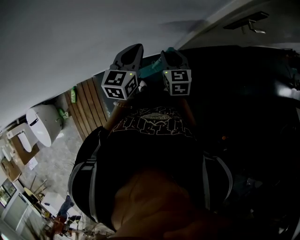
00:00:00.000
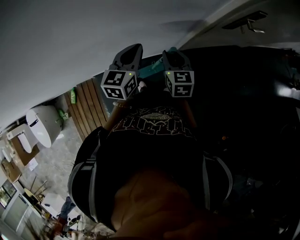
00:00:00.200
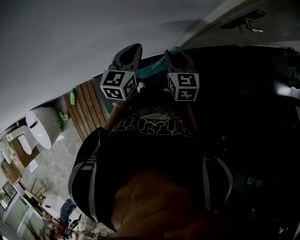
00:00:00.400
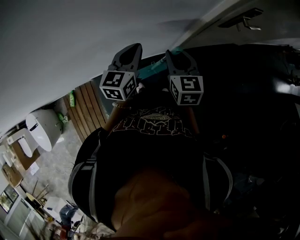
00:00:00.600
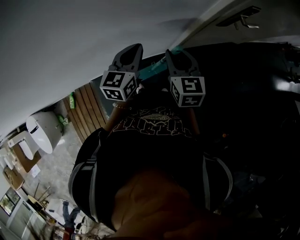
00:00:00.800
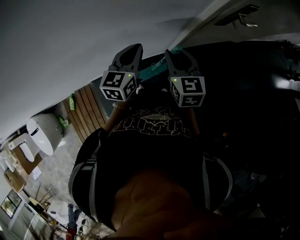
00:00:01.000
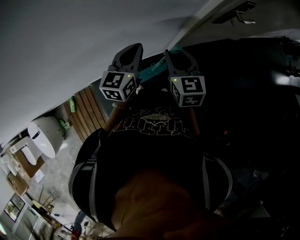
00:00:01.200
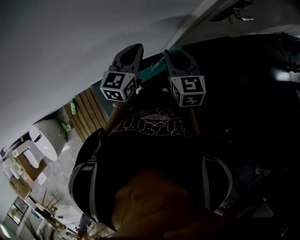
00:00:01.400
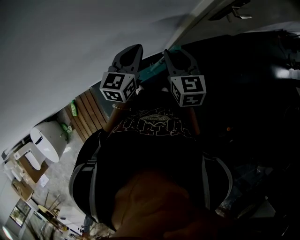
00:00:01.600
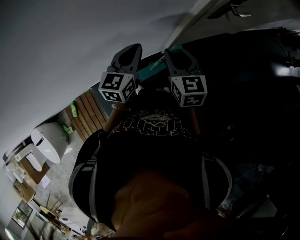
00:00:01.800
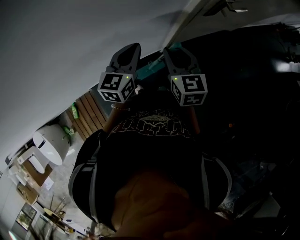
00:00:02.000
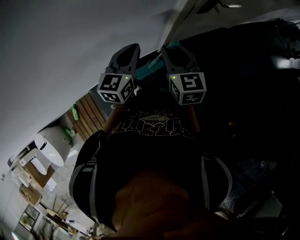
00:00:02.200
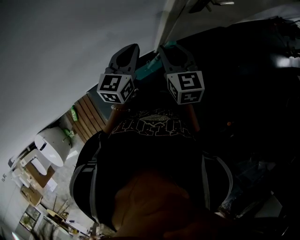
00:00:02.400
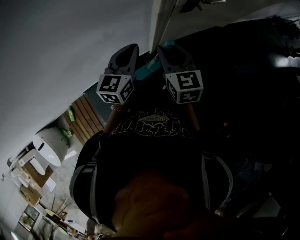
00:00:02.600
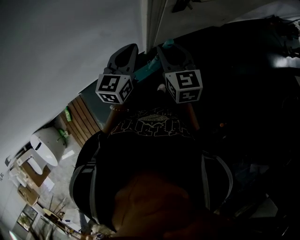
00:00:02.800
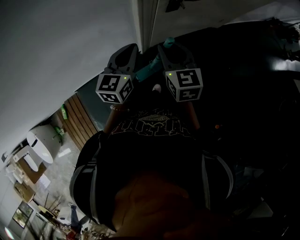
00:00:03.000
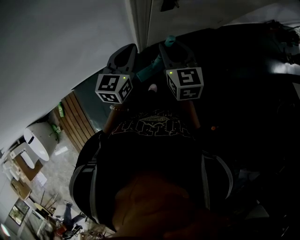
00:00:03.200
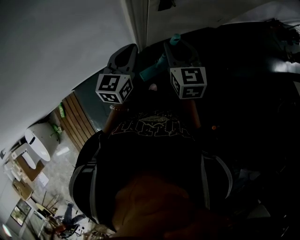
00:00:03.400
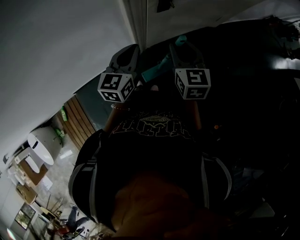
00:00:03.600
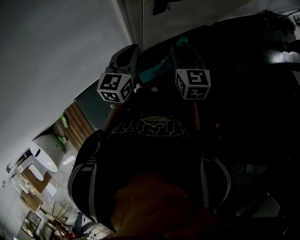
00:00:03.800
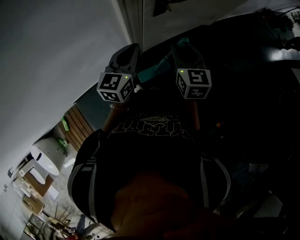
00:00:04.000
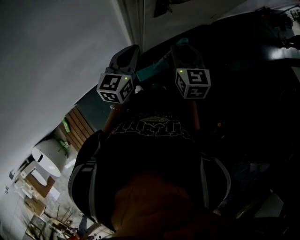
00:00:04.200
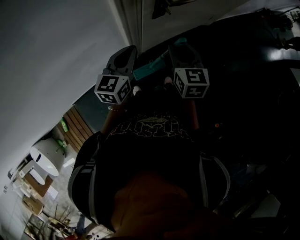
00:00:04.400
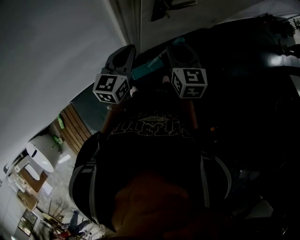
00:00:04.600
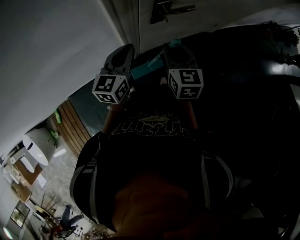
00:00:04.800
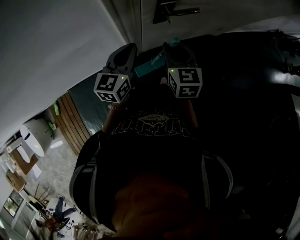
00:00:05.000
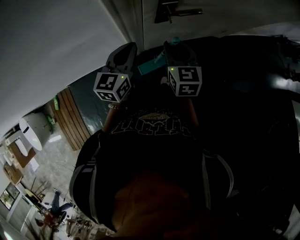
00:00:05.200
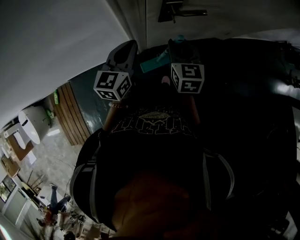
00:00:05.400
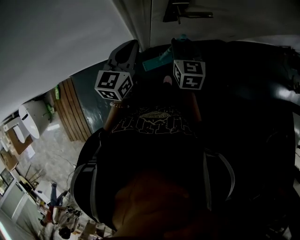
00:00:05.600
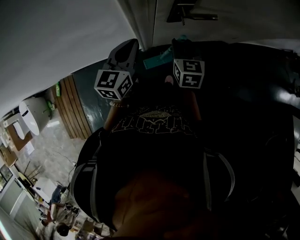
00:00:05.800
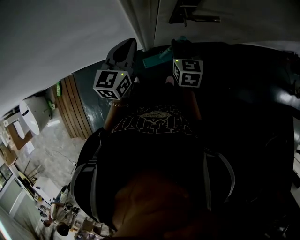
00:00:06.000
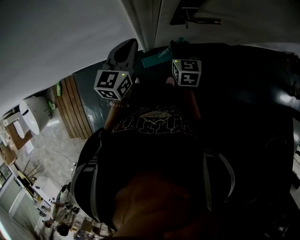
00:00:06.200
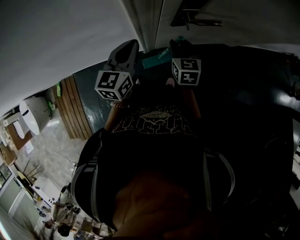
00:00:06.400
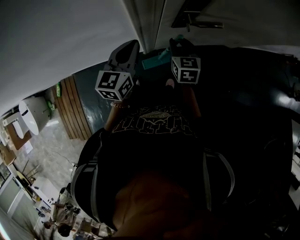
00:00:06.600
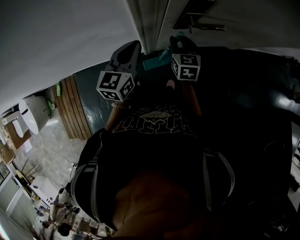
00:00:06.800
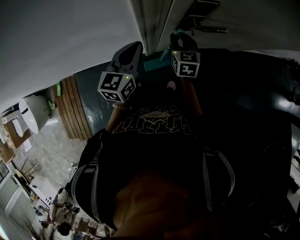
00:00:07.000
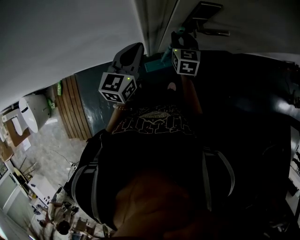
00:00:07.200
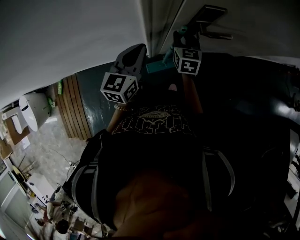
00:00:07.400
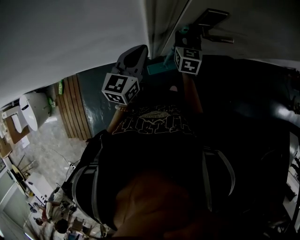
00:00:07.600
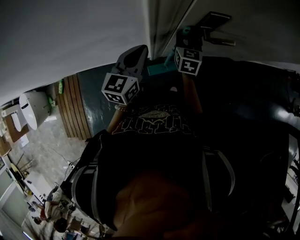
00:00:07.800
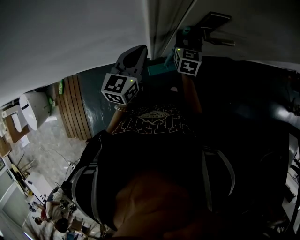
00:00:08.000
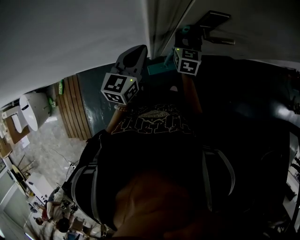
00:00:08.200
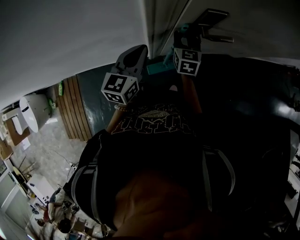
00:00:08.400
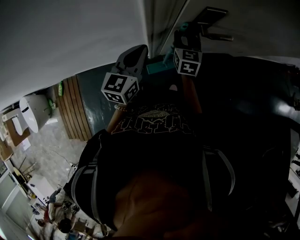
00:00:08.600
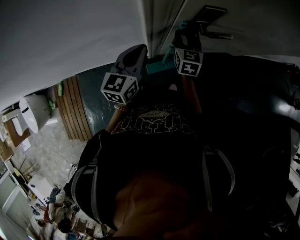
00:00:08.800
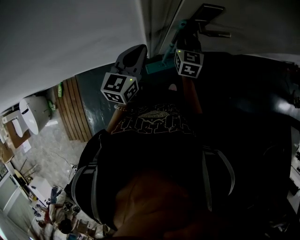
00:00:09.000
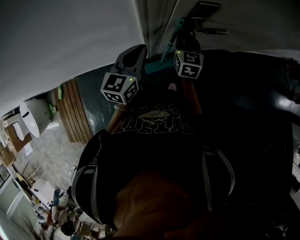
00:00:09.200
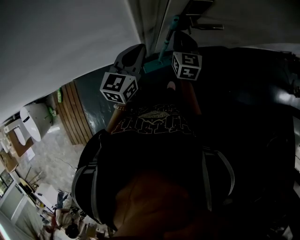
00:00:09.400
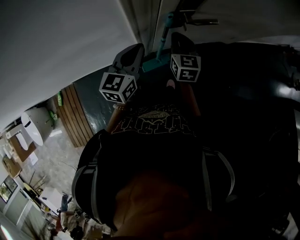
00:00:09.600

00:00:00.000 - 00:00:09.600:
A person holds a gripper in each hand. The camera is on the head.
00:00:00.000 - 00:00:01.600: The right gripper is displaced upward and to the right by about 10 cm. The left gripper ends up some 5 cm from where it was.
00:00:01.600 - 00:00:03.200: Both grippers travel together to the right, approximately 25 cm.
00:00:03.200 - 00:00:04.800: The right gripper moves forward and to the right, roughly 10 cm. The left gripper shifts some 10 cm forward.
00:00:04.800 - 00:00:06.400: The left gripper moves some 5 cm, while the right gripper is displaced downward and forward by approximately 15 cm.
00:00:06.400 - 00:00:08.000: The right gripper travels forward by some 10 cm.
00:00:08.000 - 00:00:09.600: The right gripper heads backward, covering some 5 cm, and closes up.

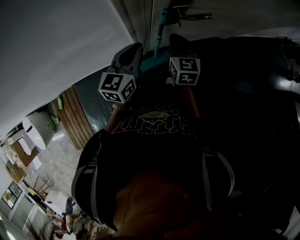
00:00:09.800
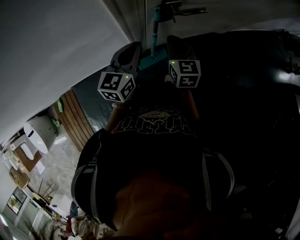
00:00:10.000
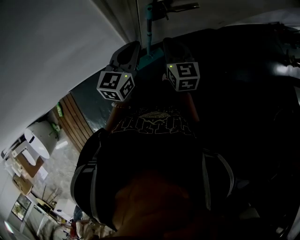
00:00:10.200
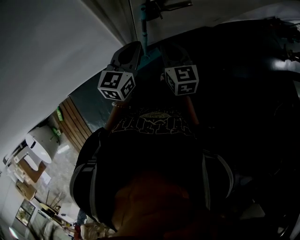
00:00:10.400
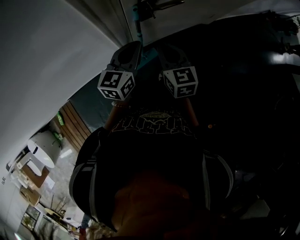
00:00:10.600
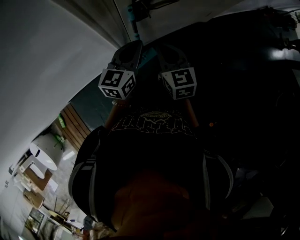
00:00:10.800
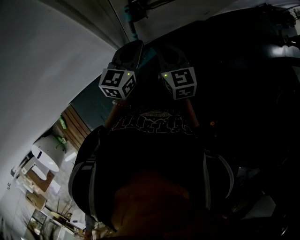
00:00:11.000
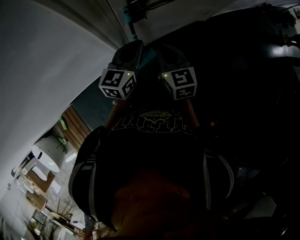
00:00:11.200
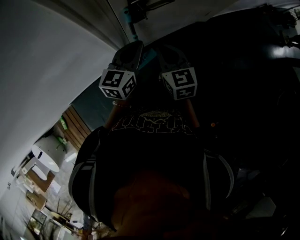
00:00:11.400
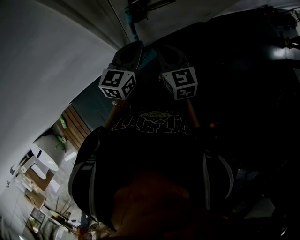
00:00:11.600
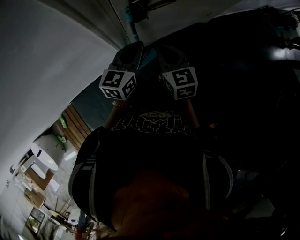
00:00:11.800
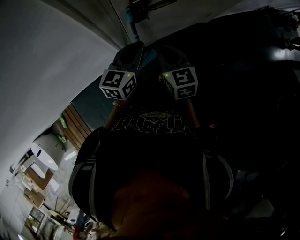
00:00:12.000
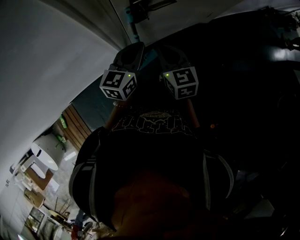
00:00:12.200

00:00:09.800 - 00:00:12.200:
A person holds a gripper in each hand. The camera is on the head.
00:00:09.800 - 00:00:11.000: The right gripper travels backward and to the right by about 10 cm, while the left gripper moves to the right, roughly 10 cm.
00:00:11.000 - 00:00:12.200: The two grippers keep their place.

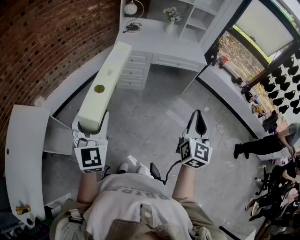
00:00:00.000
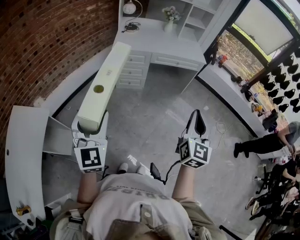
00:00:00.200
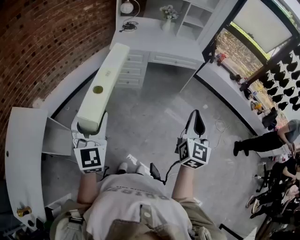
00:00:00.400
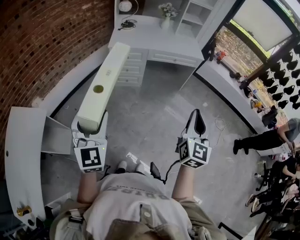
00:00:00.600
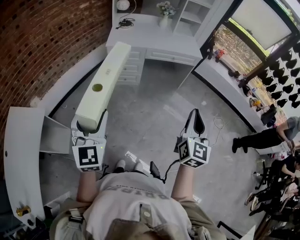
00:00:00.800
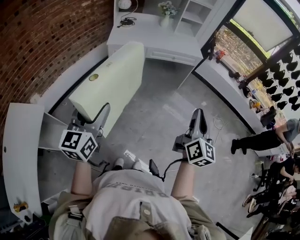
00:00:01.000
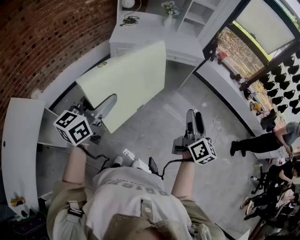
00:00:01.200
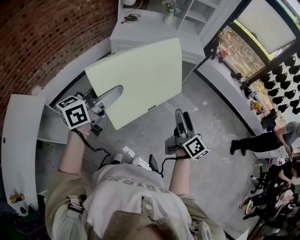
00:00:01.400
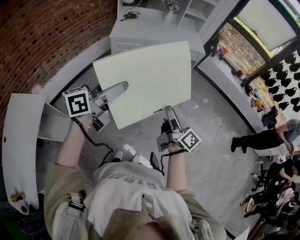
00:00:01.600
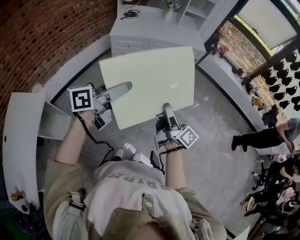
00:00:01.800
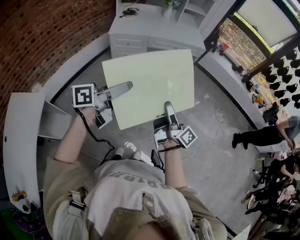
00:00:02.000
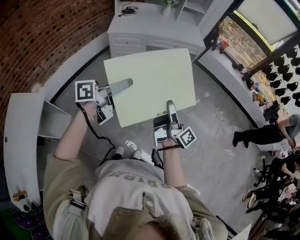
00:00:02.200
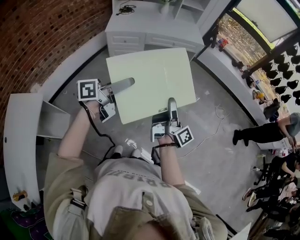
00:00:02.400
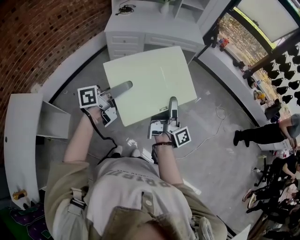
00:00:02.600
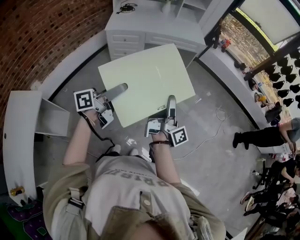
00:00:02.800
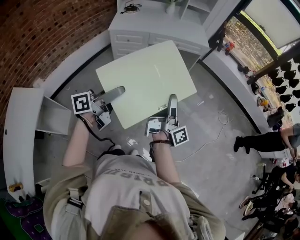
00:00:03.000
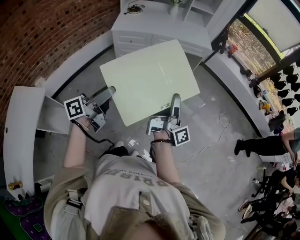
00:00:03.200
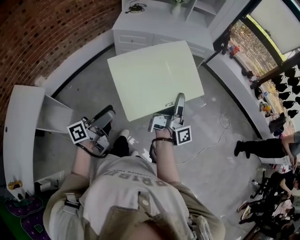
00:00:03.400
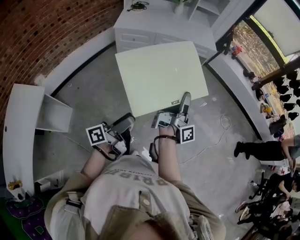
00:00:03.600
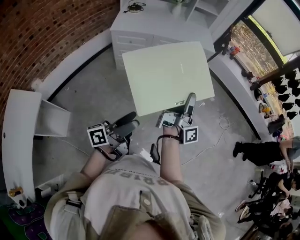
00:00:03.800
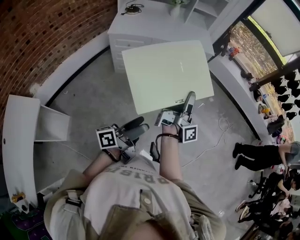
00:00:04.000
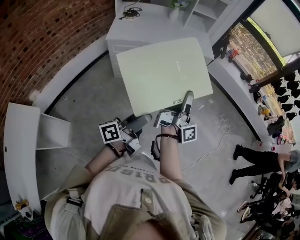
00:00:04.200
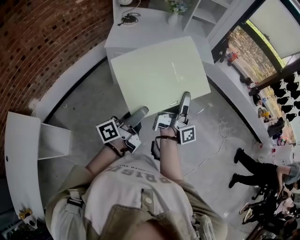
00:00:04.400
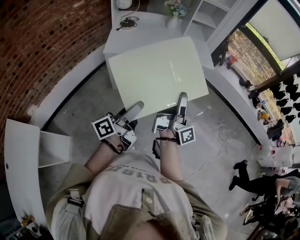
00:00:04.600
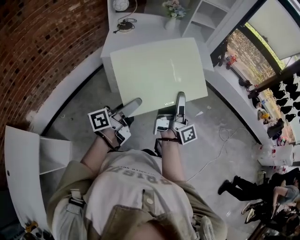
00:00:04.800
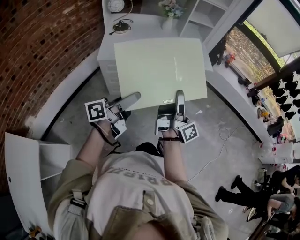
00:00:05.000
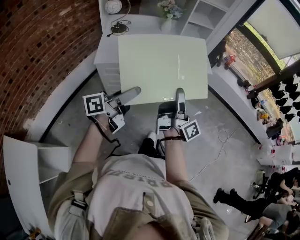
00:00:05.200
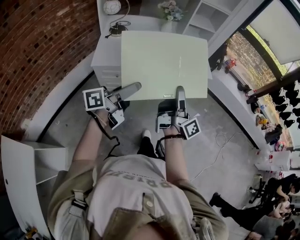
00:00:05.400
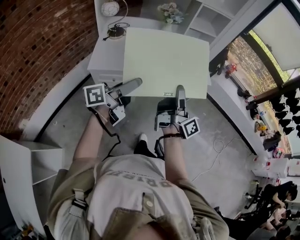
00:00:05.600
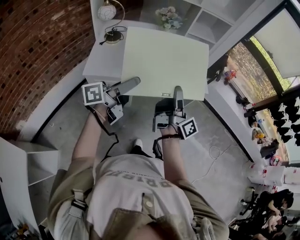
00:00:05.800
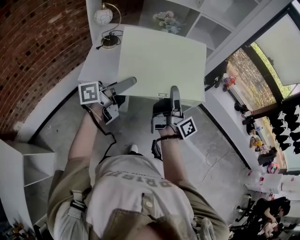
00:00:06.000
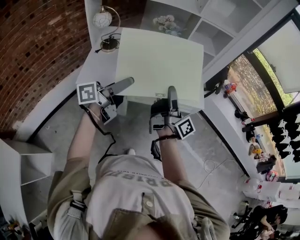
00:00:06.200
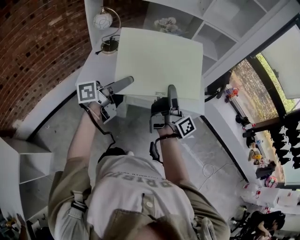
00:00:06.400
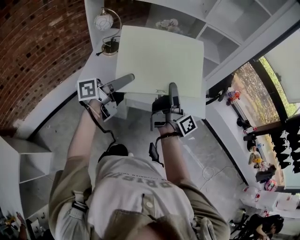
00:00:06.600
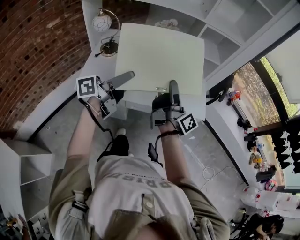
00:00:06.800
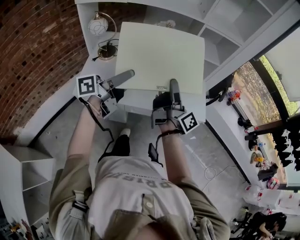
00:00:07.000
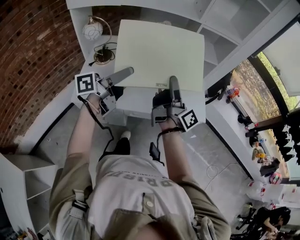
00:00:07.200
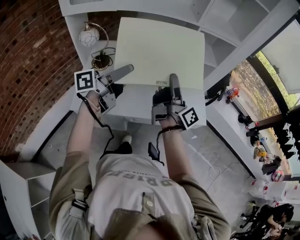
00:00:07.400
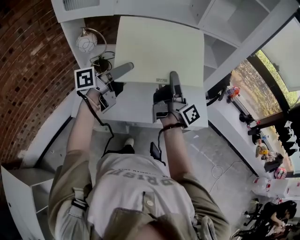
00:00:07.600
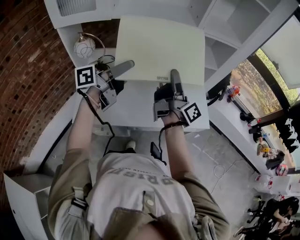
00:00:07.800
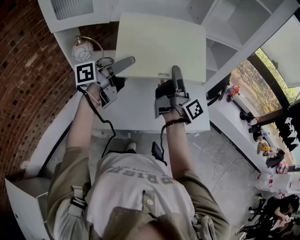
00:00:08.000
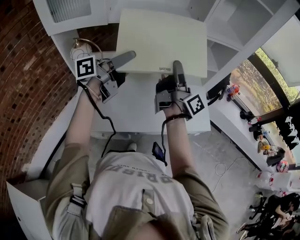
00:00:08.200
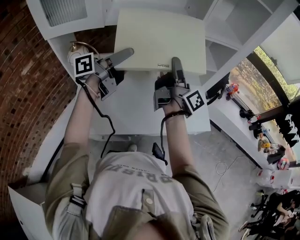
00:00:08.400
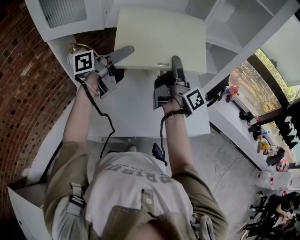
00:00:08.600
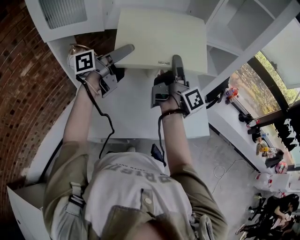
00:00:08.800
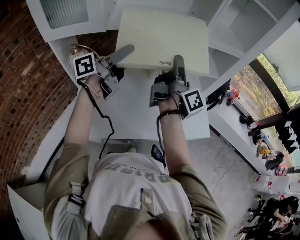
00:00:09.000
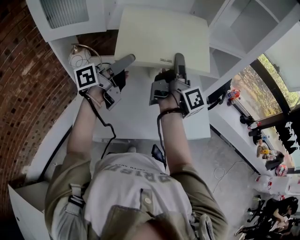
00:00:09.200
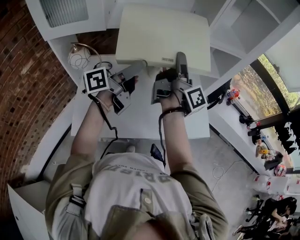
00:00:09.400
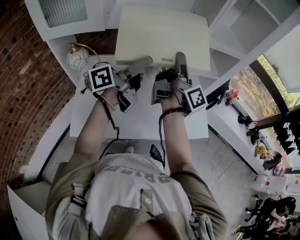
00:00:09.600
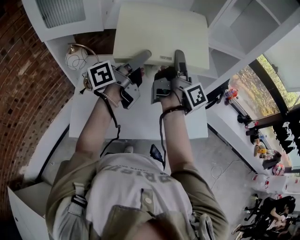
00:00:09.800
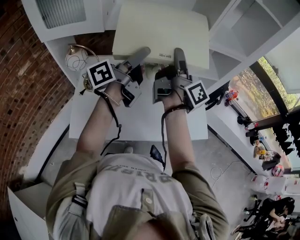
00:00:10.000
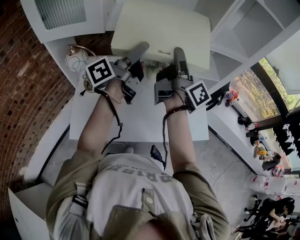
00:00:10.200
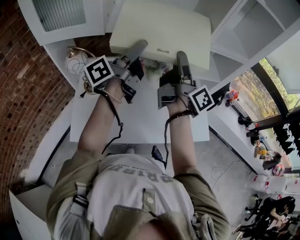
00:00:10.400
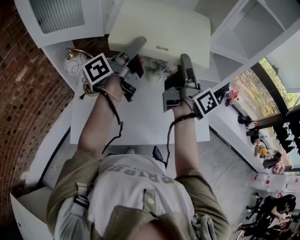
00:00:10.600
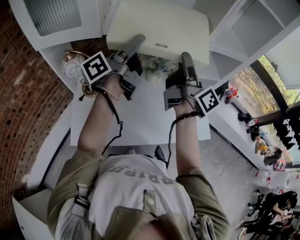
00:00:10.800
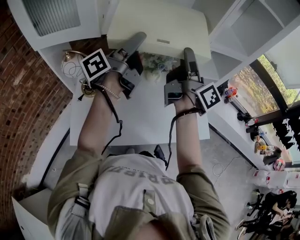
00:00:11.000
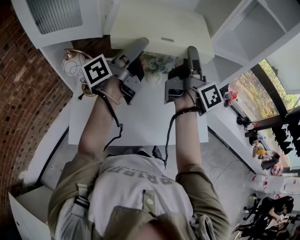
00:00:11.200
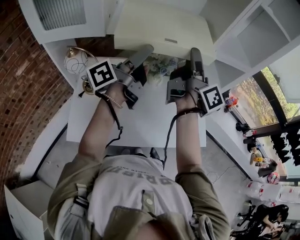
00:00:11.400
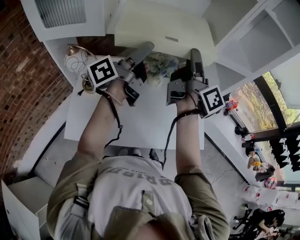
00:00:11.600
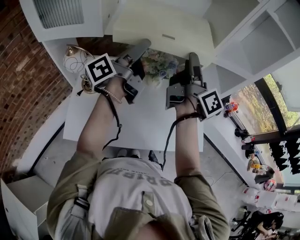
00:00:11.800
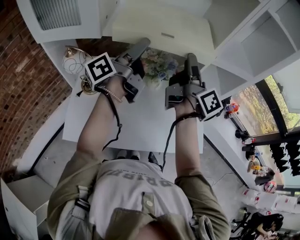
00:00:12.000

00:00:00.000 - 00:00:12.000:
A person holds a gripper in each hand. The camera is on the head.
00:00:00.000 - 00:00:01.600: The right gripper shifts roughly 10 cm downward, rolls clockwise, seen from behind, by approximately 60 degrees, and opens up. Meanwhile the left gripper moves to the right and forward, about 15 cm, and turns by approximately 80 degrees.
00:00:01.600 - 00:00:03.000: The right gripper heads forward, covering roughly 5 cm, rotates approximately 40 degrees, and closes its fingers, while the left gripper is displaced downward by roughly 10 cm.
00:00:03.000 - 00:00:04.400: The left gripper heads forward, covering approximately 15 cm; the right gripper shifts approximately 20 cm forward and to the left.
00:00:04.400 - 00:00:06.000: Both grippers move forward, some 40 cm. The right gripper turns by roughly 20 degrees.
00:00:06.000 - 00:00:07.600: Both grippers move forward, about 25 cm.
00:00:07.600 - 00:00:09.000: The left gripper travels forward, to the left and upward by roughly 15 cm, while the right gripper goes approximately 15 cm forward and upward.
00:00:10.400 - 00:00:12.000: The right gripper moves forward, roughly 5 cm.
